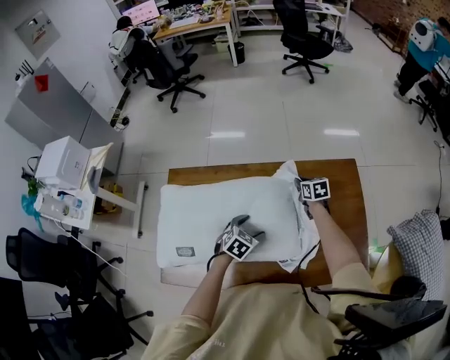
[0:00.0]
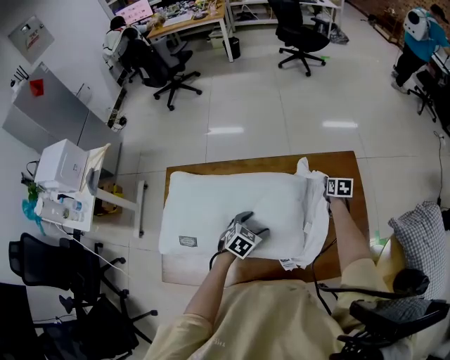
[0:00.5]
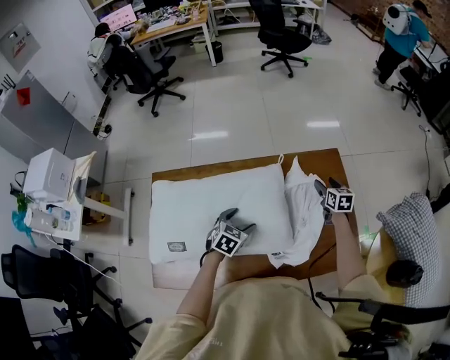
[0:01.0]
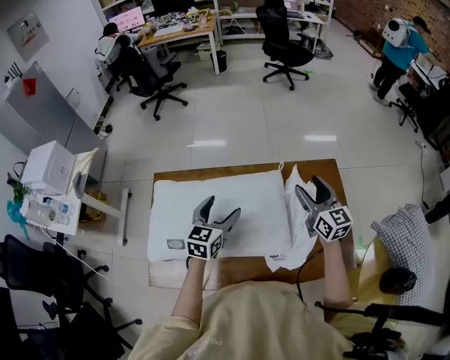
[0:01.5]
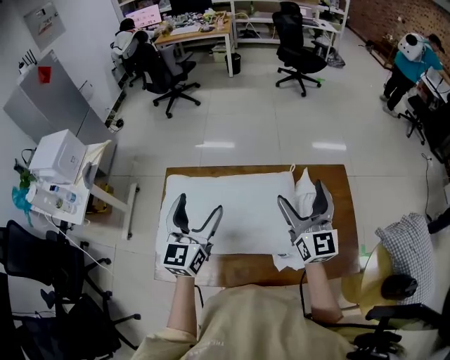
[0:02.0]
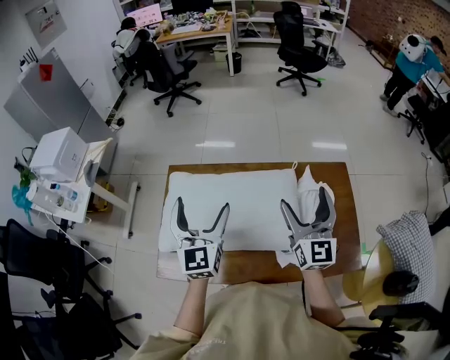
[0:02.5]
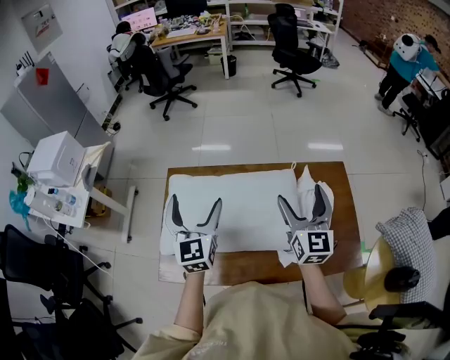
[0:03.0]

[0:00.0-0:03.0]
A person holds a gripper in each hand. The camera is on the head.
0:00.0 to 0:01.5: The left gripper heads upward, covering approximately 20 cm, and points its fingers about 40 degrees further upward, while the right gripper shifts some 30 cm upward and backward, angles its fingers upward, by about 40 degrees, and opens.
0:01.5 to 0:03.0: The left gripper goes roughly 20 cm to the left, upward and backward, and turns by some 30 degrees. The right gripper moves to the left, backward and upward, approximately 15 cm, and opens up.

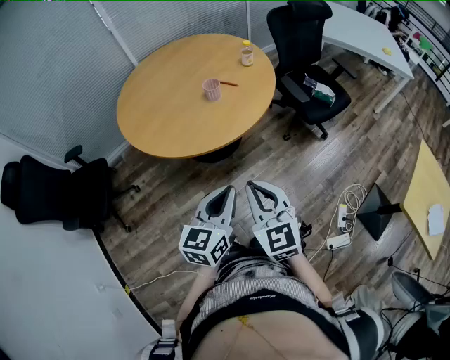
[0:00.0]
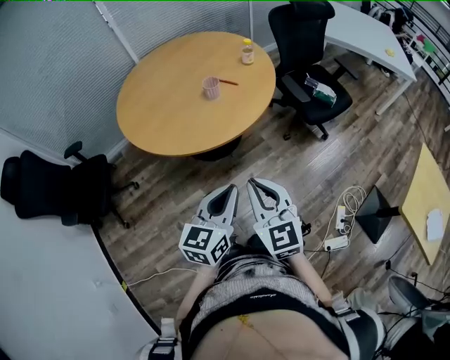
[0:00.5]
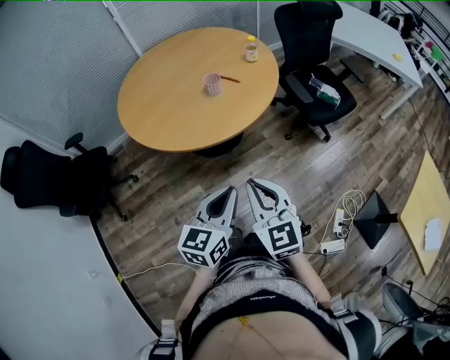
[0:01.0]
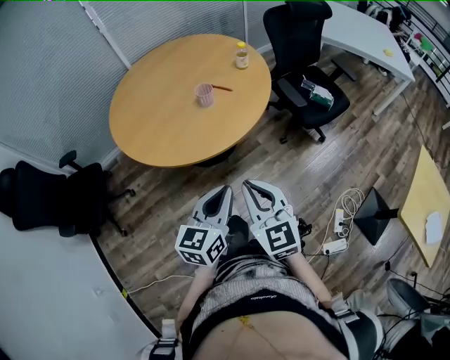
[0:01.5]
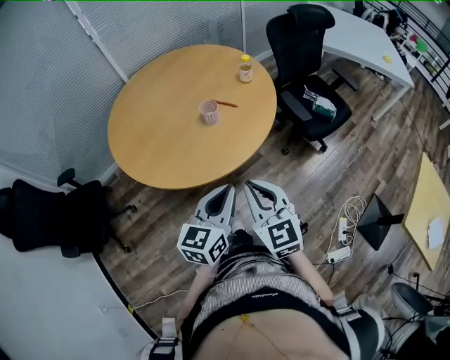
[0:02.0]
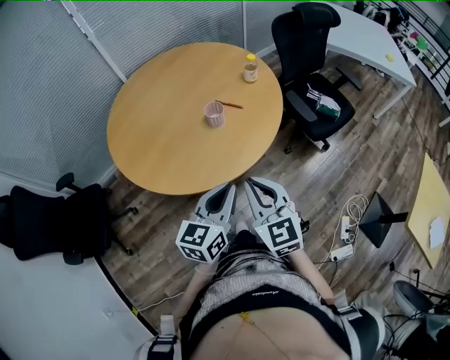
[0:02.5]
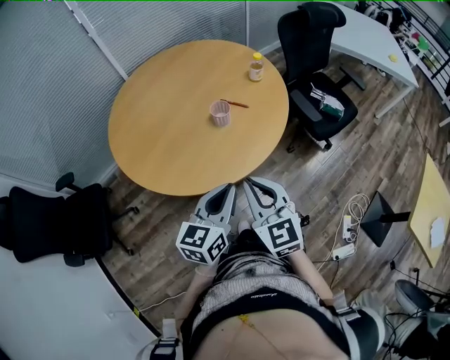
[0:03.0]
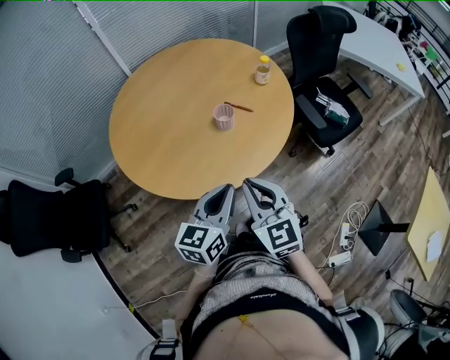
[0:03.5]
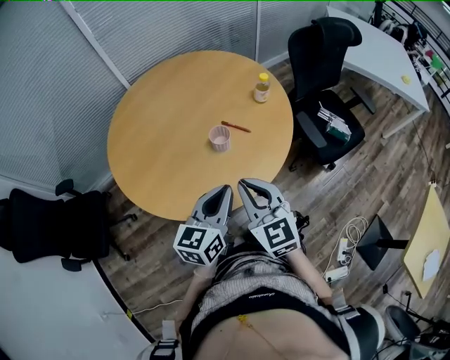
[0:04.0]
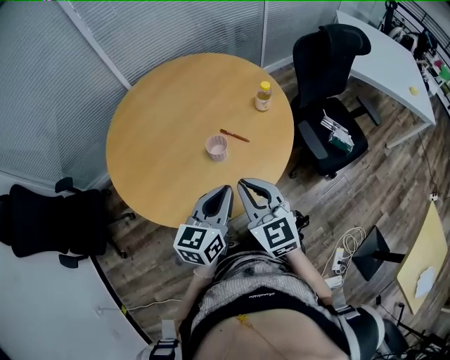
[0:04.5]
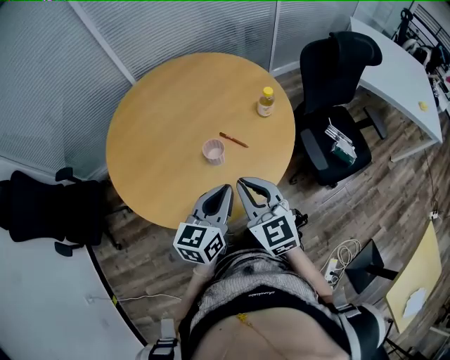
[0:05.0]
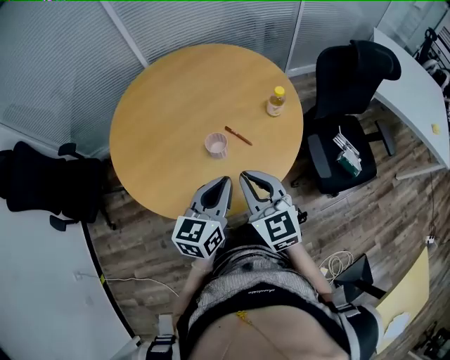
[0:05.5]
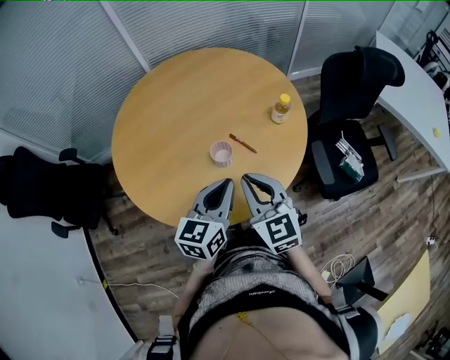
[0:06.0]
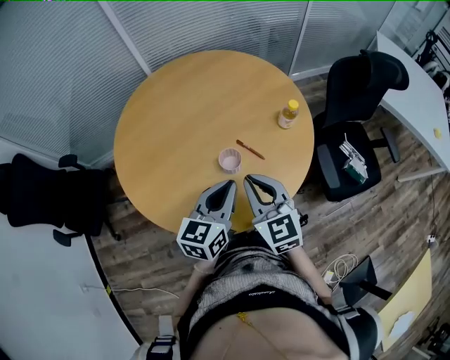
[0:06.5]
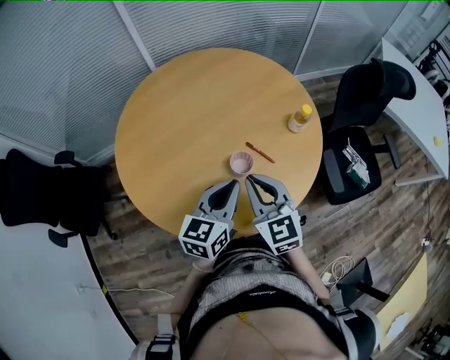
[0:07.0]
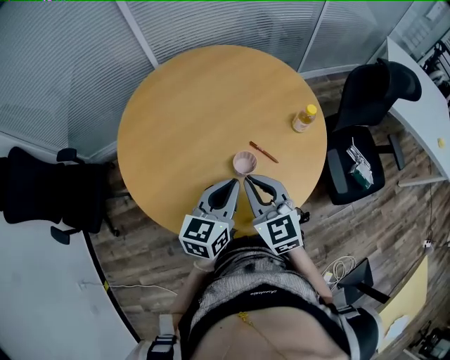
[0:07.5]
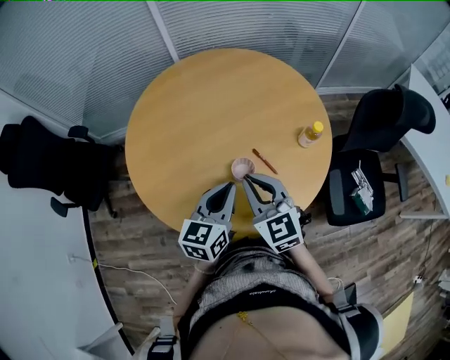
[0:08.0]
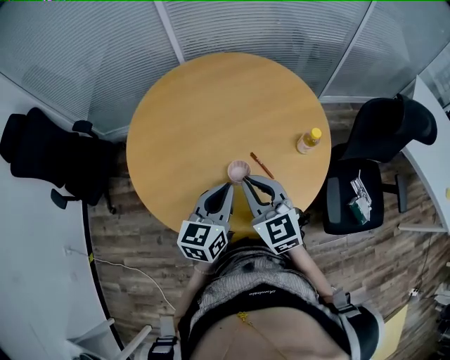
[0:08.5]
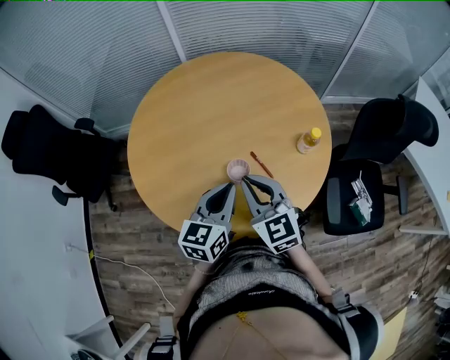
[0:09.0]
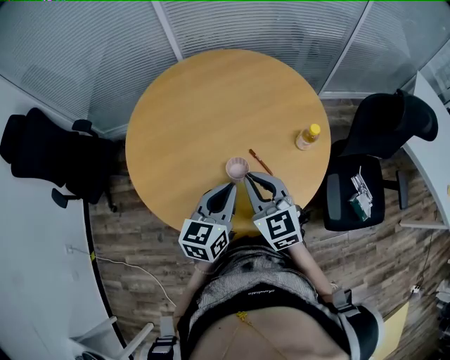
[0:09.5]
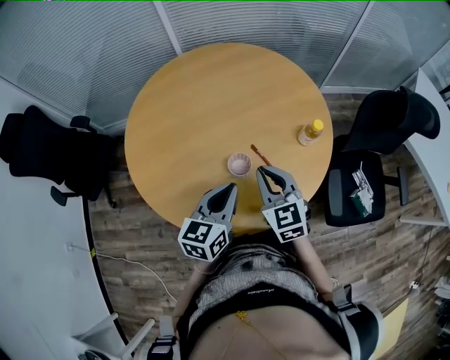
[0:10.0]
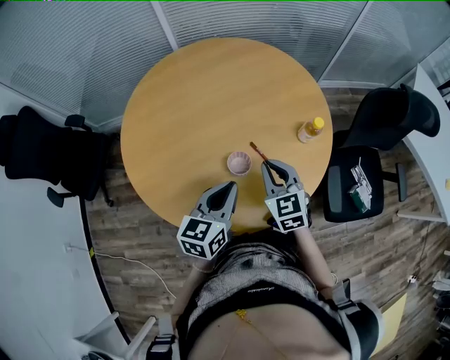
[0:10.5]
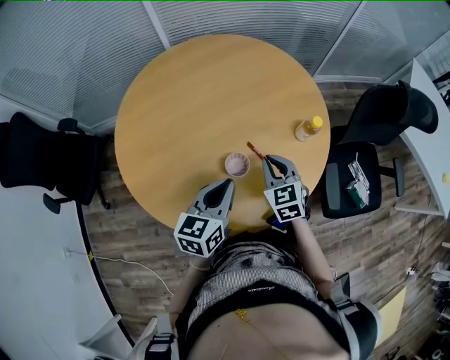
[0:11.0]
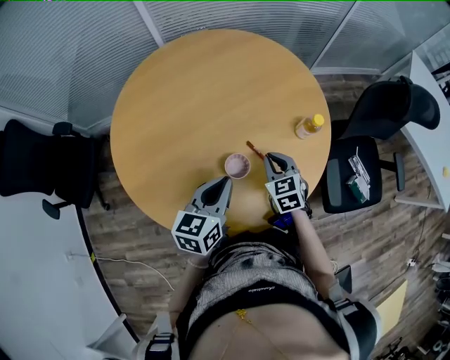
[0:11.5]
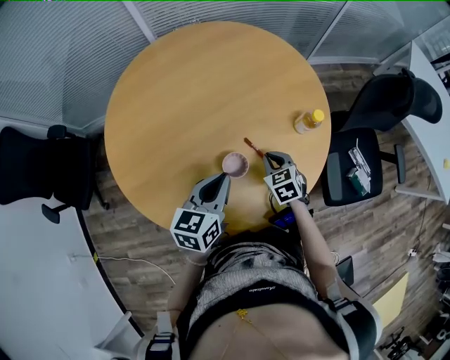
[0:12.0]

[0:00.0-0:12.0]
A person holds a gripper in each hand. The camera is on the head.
0:00.0 to 0:02.0: Both grippers travel together forward, some 15 cm.
0:02.0 to 0:04.0: Both grippers travel together forward, roughly 15 cm.
0:04.0 to 0:06.0: Both grippers travel together forward and to the right, roughly 10 cm.
0:06.0 to 0:08.0: Both grippers travel together forward and to the left, approximately 10 cm.
0:08.0 to 0:10.0: The right gripper shifts roughly 5 cm to the right.
0:10.0 to 0:12.0: The right gripper shifts approximately 20 cm downward and forward, and turns by roughly 30 degrees. Meanwhile the left gripper travels forward by some 5 cm.

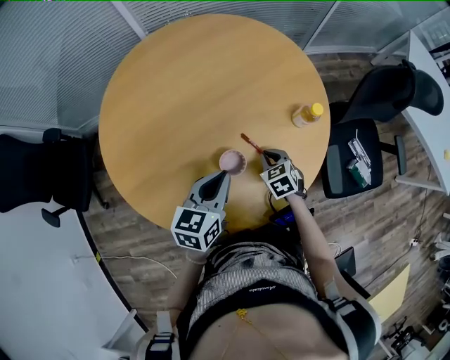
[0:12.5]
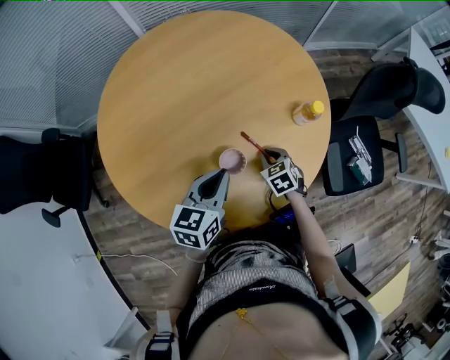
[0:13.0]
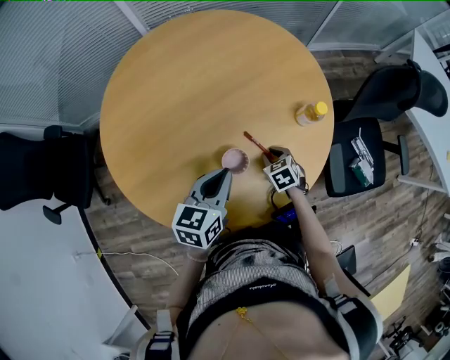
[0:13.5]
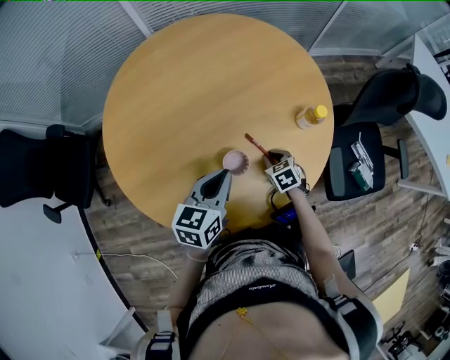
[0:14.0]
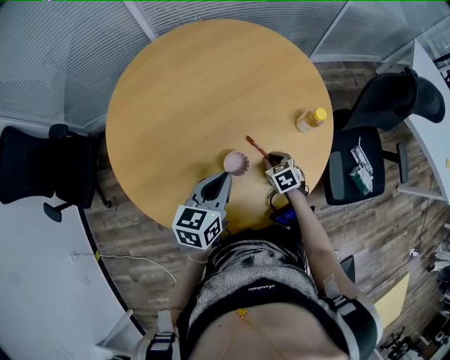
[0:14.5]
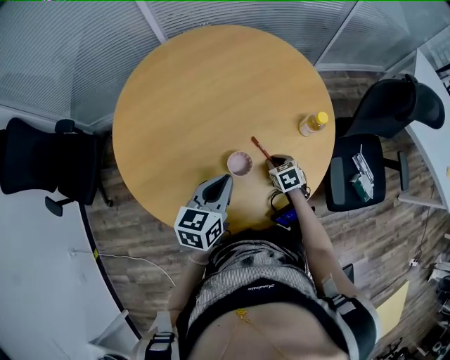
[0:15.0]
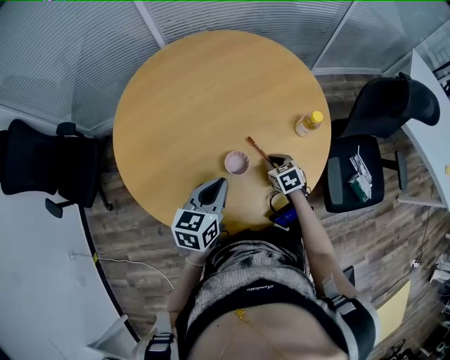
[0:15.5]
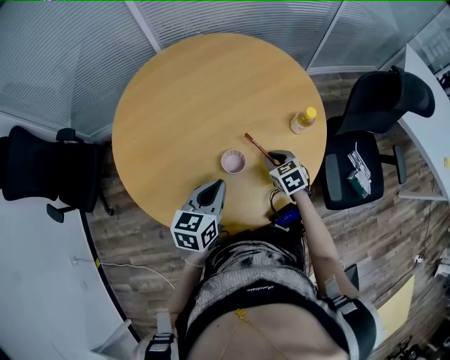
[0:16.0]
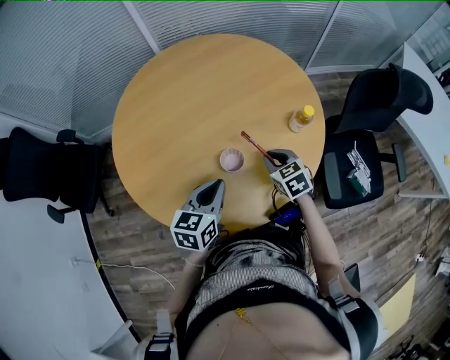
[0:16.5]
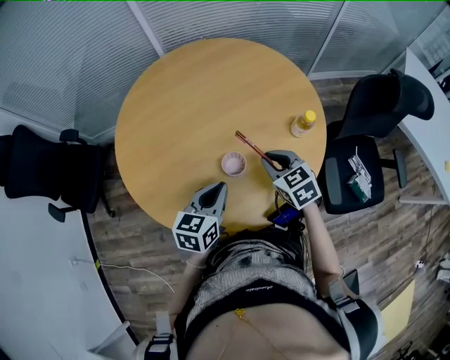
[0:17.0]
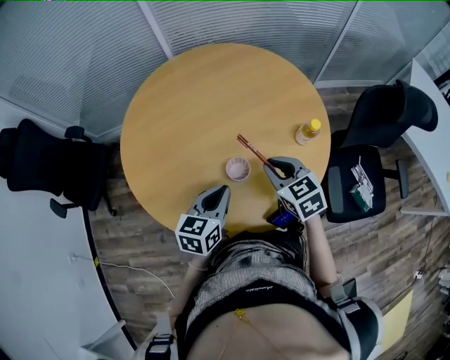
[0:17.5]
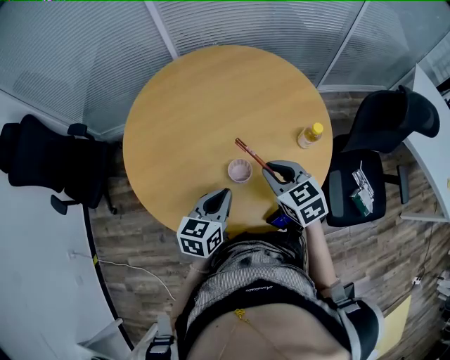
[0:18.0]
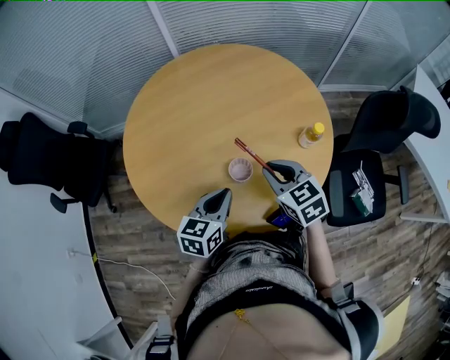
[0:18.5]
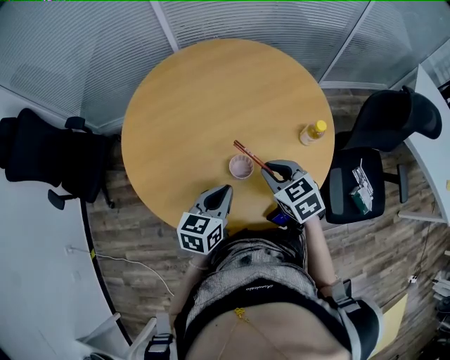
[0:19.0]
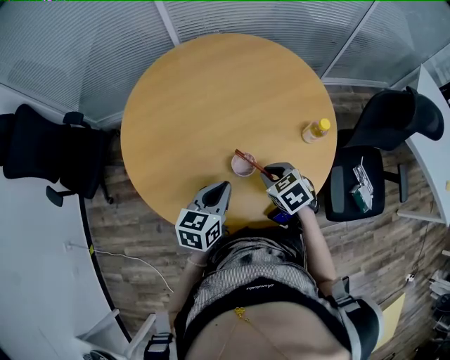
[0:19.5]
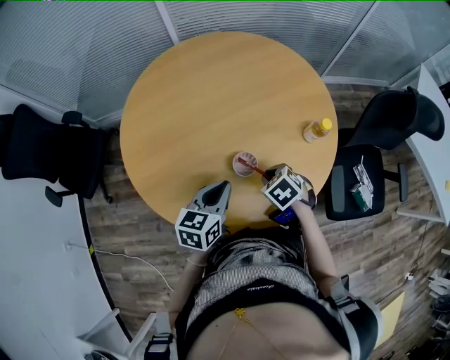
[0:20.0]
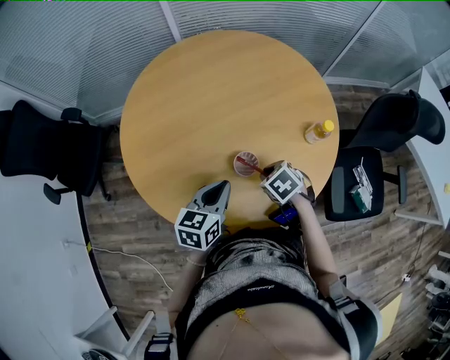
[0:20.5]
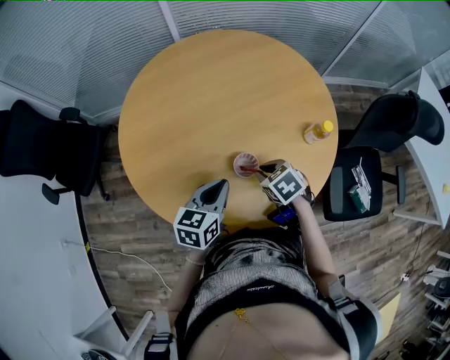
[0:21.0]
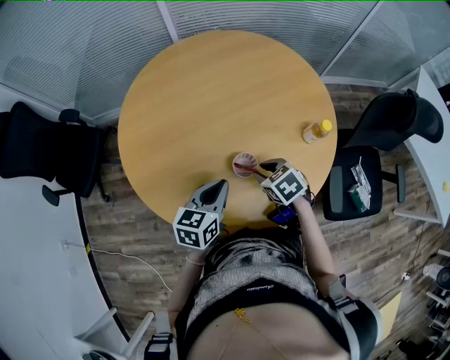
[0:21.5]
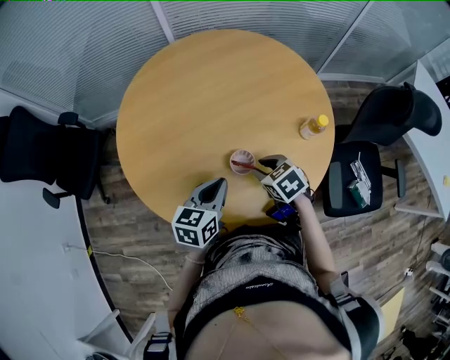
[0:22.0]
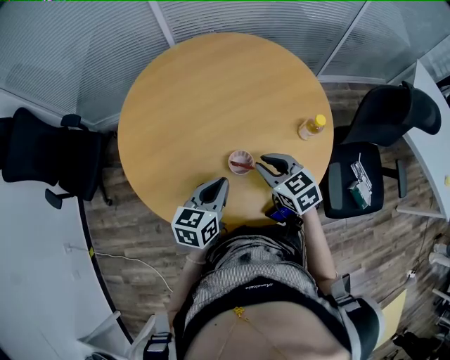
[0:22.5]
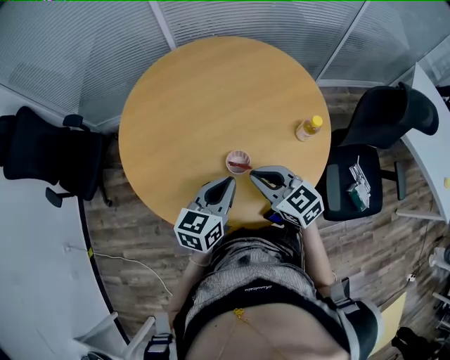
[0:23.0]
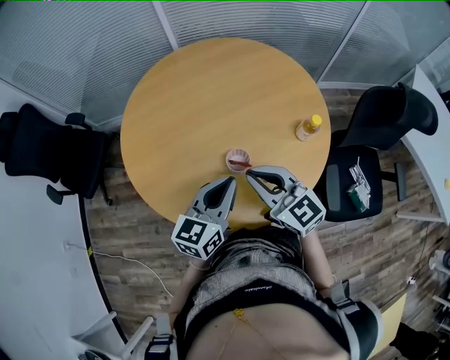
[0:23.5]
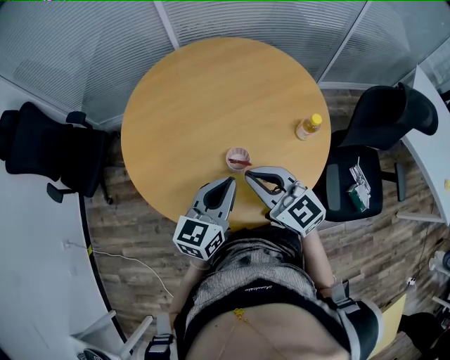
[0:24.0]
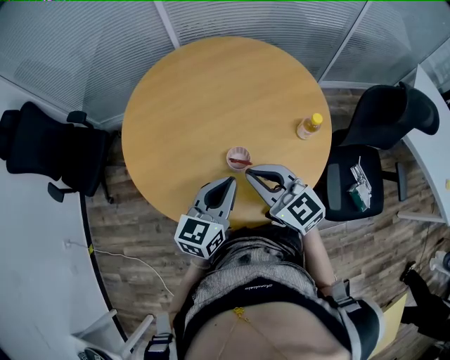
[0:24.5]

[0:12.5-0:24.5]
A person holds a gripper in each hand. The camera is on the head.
0:12.5 to 0:14.5: The grippers make only small movements.
0:14.5 to 0:16.5: The right gripper travels upward by about 15 cm, while the left gripper moves backward, roughly 5 cm.
0:16.5 to 0:18.5: The right gripper goes some 10 cm upward.
0:18.5 to 0:20.5: The right gripper travels downward by approximately 15 cm, and tips its fingers downward by approximately 30 degrees.
0:20.5 to 0:22.5: The right gripper is displaced upward by about 10 cm, and angles its fingers upward, by about 30 degrees.
0:22.5 to 0:24.5: The left gripper is displaced upward by some 5 cm; the right gripper moves upward and backward, approximately 10 cm, and swivels about 20 degrees.
